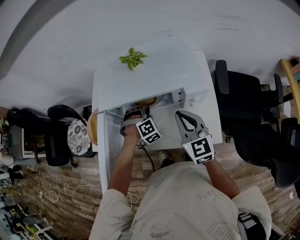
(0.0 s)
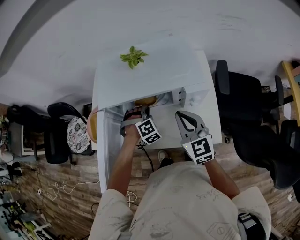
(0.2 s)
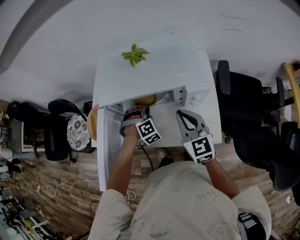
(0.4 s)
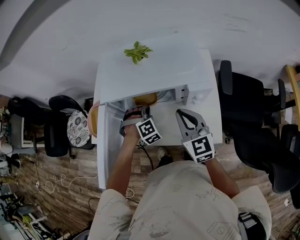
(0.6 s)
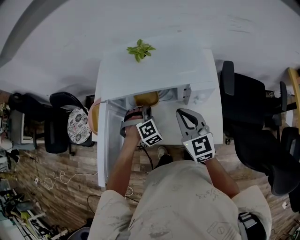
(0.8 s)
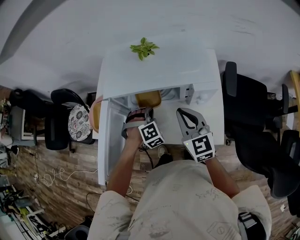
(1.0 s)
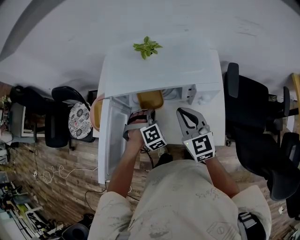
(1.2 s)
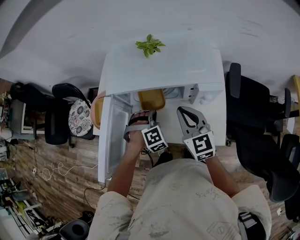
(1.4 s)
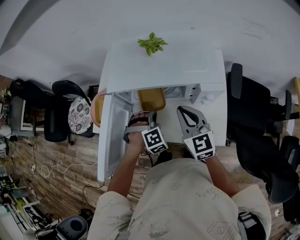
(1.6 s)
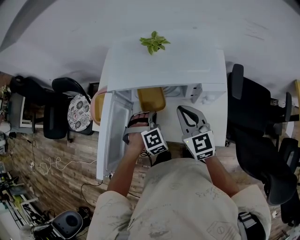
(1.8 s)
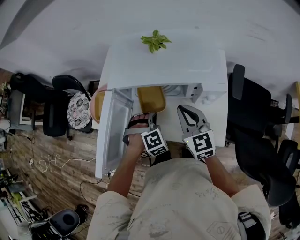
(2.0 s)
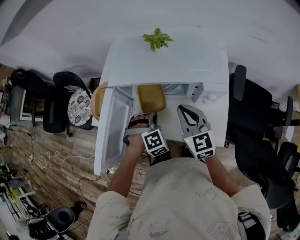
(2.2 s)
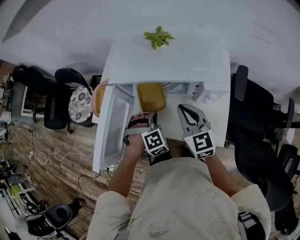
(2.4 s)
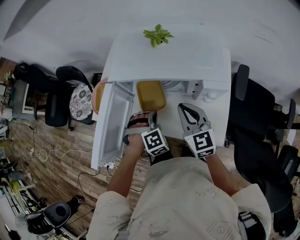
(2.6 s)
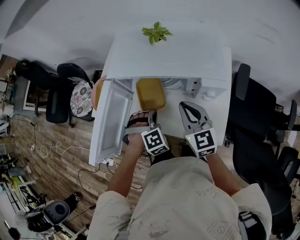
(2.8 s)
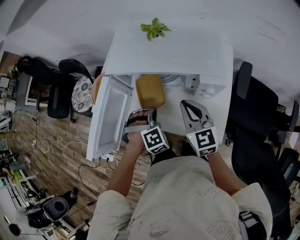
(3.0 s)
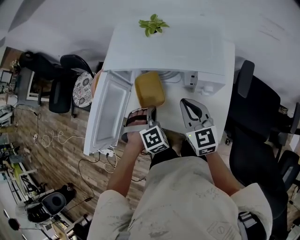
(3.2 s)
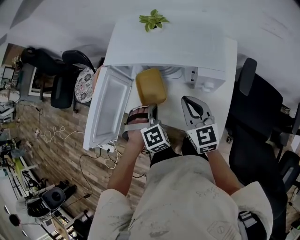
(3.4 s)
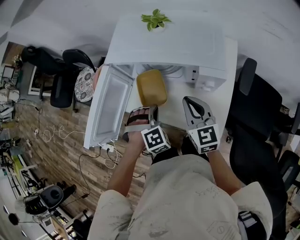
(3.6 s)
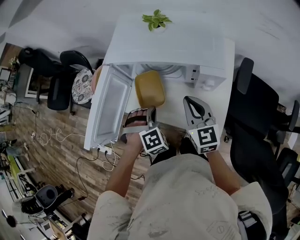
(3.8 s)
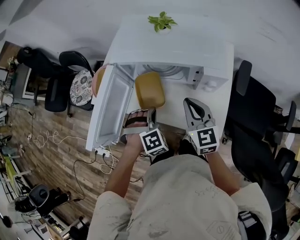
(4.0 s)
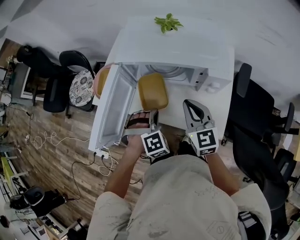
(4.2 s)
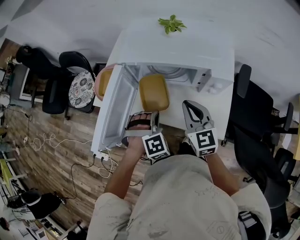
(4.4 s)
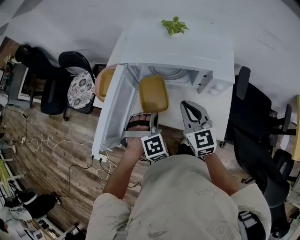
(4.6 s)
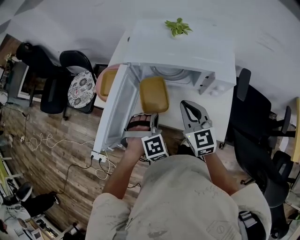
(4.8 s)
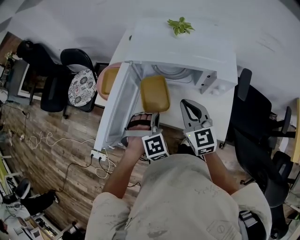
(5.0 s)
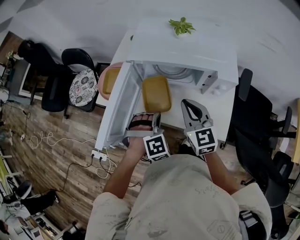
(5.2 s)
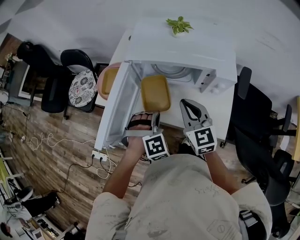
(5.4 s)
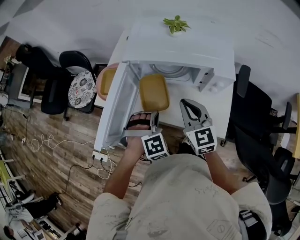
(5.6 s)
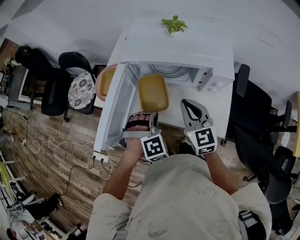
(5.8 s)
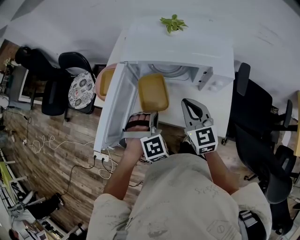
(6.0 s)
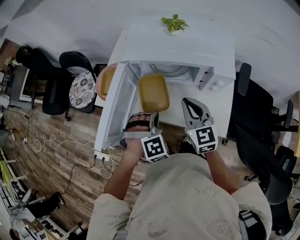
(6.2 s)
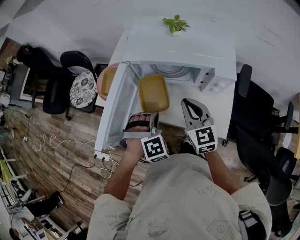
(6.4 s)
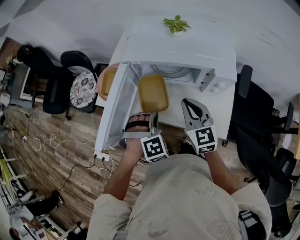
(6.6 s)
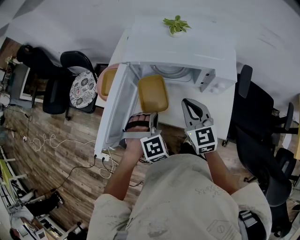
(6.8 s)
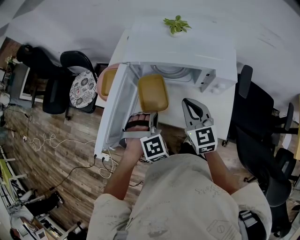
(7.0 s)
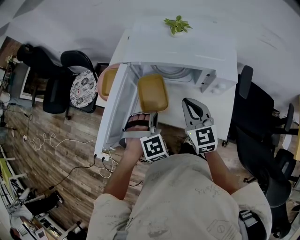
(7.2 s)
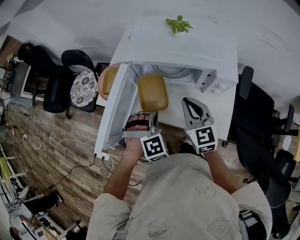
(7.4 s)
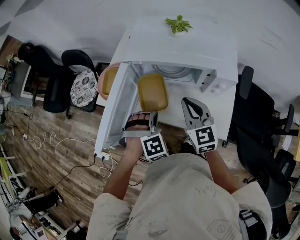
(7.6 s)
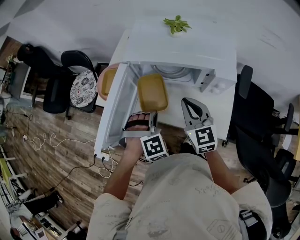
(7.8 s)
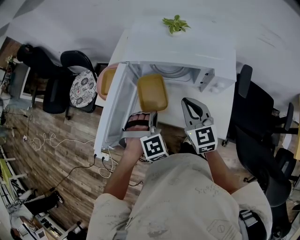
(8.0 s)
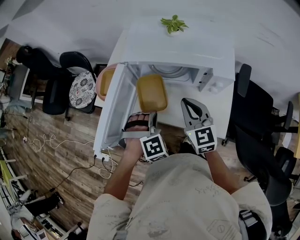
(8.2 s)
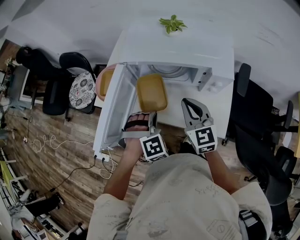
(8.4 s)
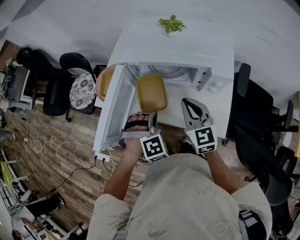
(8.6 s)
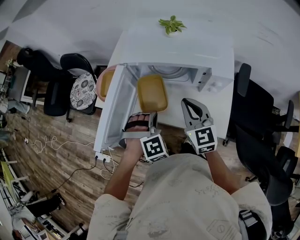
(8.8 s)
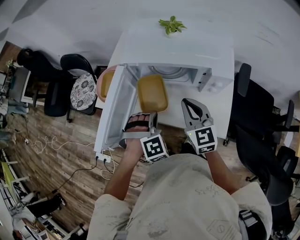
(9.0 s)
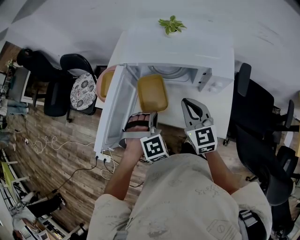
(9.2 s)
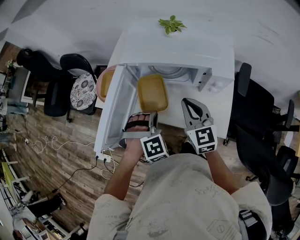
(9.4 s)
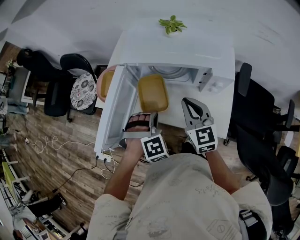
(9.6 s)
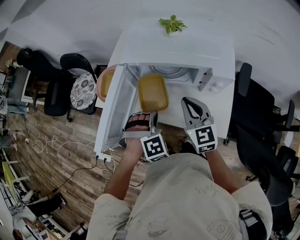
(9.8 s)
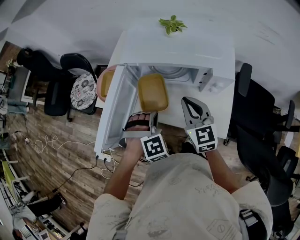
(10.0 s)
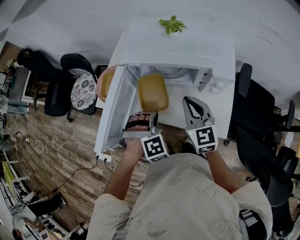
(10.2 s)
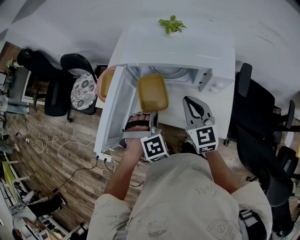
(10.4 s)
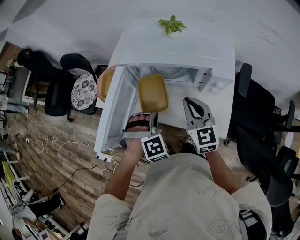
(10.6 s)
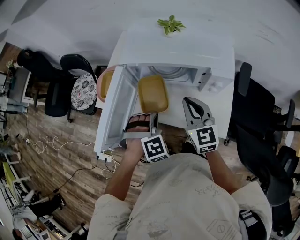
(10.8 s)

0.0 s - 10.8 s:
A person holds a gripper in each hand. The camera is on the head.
0.0 s - 1.6 s: The left gripper goes about 5 cm backward.
1.6 s - 3.0 s: The grippers make only small movements.
3.0 s - 4.6 s: The grippers both shift to the left by about 5 cm.
4.6 s - 6.2 s: The grippers move only a little.
6.2 s - 9.2 s: Both grippers stay put.
9.2 s - 10.8 s: Both grippers stay about where they are.

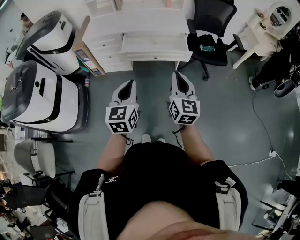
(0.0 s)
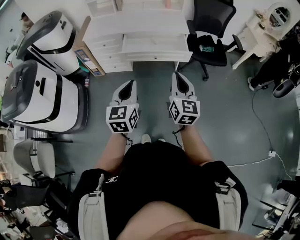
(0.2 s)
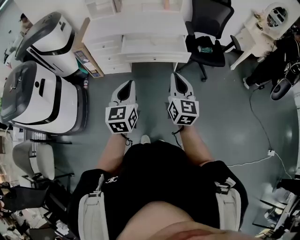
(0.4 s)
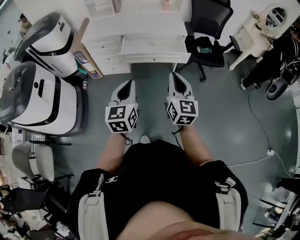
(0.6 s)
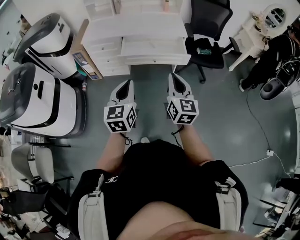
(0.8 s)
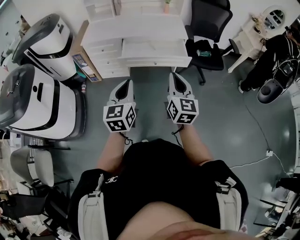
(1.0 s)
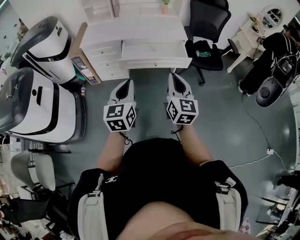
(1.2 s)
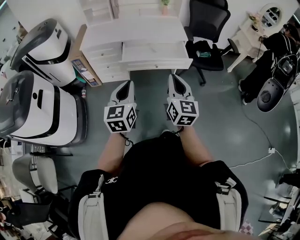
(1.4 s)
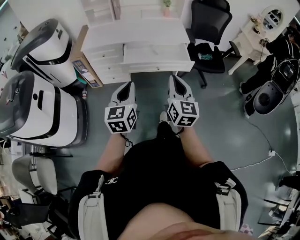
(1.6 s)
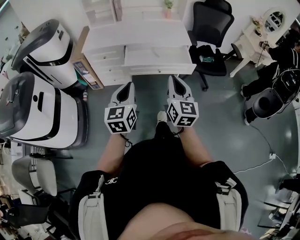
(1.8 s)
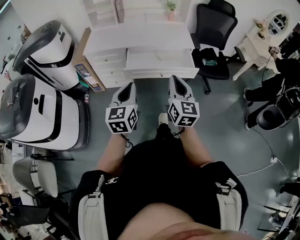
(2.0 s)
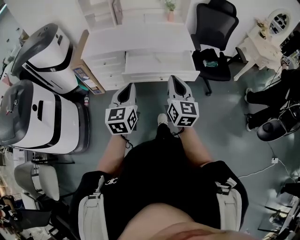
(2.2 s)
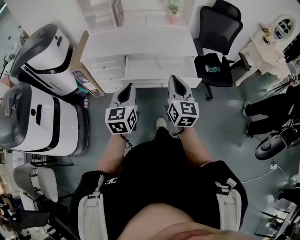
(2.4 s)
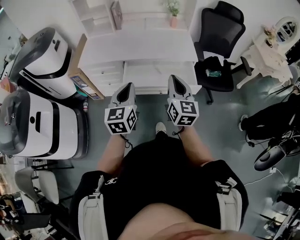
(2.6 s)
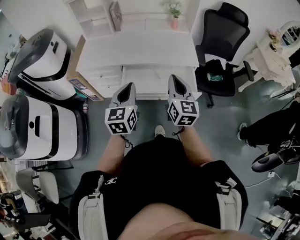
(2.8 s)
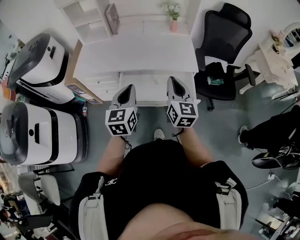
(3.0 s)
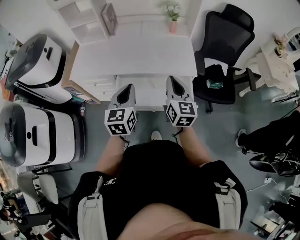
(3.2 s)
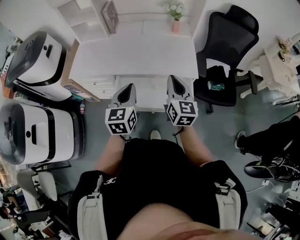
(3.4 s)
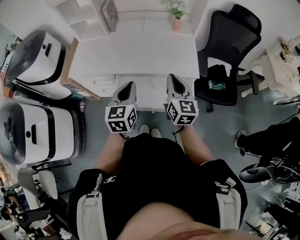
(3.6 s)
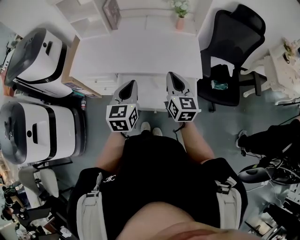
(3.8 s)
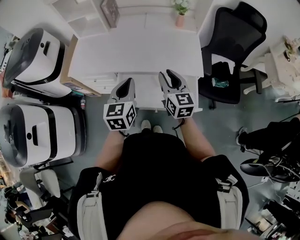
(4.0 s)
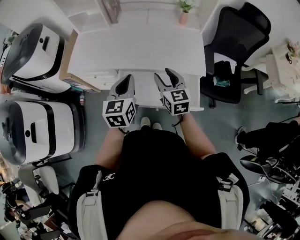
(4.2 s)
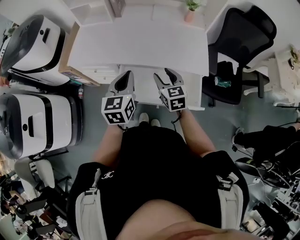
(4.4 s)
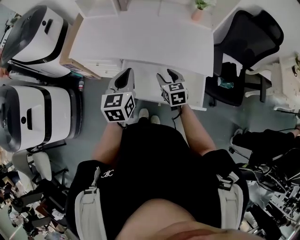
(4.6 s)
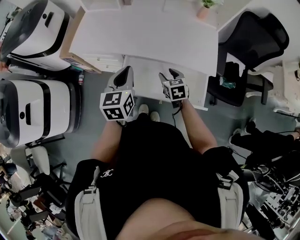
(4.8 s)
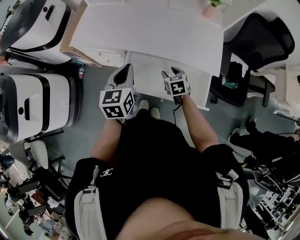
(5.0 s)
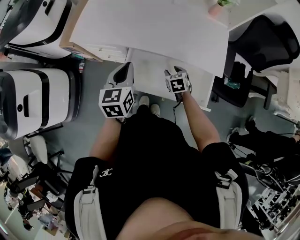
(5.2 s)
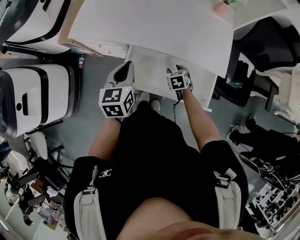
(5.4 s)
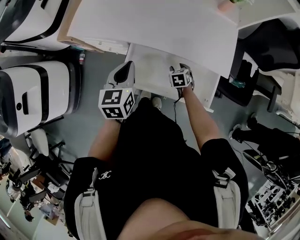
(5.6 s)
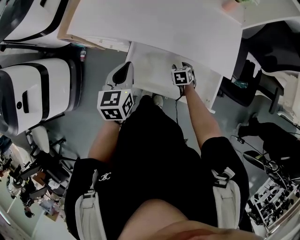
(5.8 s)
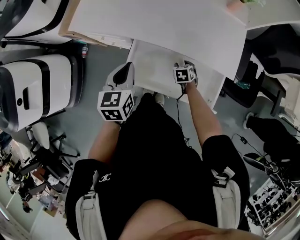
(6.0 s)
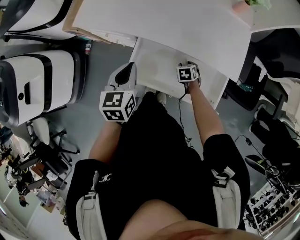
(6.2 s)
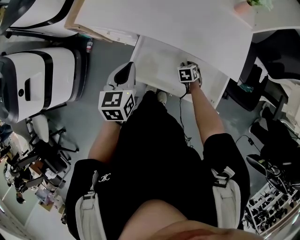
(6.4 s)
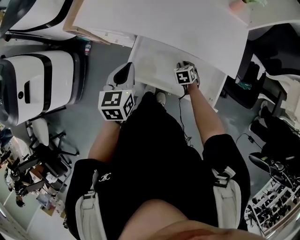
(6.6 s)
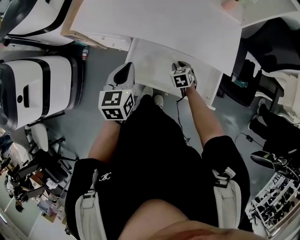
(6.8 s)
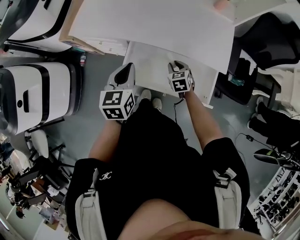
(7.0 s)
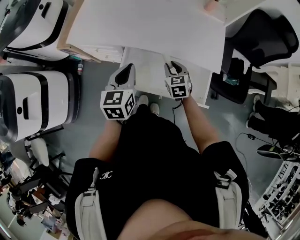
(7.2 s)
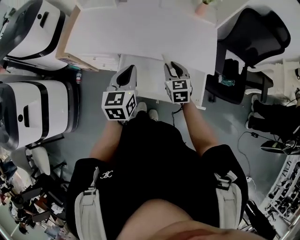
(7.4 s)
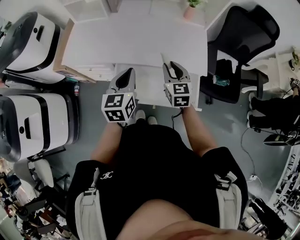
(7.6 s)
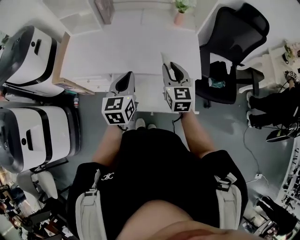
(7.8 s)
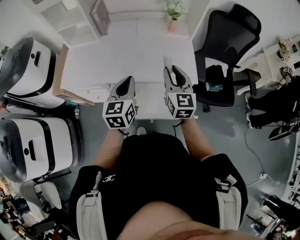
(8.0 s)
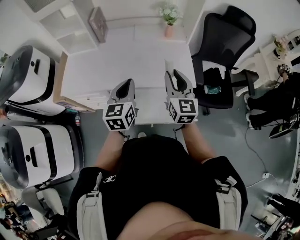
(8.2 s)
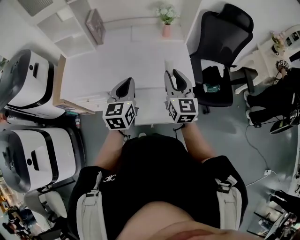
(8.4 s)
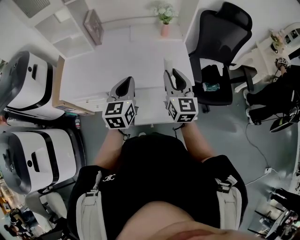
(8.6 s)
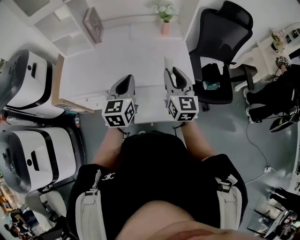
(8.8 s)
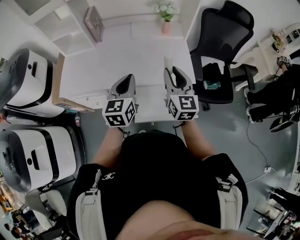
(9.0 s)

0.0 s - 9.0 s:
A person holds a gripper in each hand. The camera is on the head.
0.0 s - 1.6 s: The right gripper travels to the left by approximately 10 cm. The left gripper travels to the left and forward by about 10 cm.
1.6 s - 3.0 s: Both grippers travel together forward, approximately 35 cm.
3.0 s - 4.4 s: The left gripper is displaced forward by about 15 cm. Meanwhile the right gripper moves forward and downward, roughly 20 cm, swivels some 30 degrees, and opens.
4.4 s - 6.0 s: The left gripper shifts roughly 15 cm downward, to the left and forward, while the right gripper travels downward by some 30 cm, and points its fingers roughly 40 degrees further downward.
6.0 s - 7.6 s: The right gripper is displaced upward by about 30 cm, points its fingers some 40 degrees further upward, and closes its fingers. The left gripper is displaced to the right and upward by some 15 cm.
7.6 s - 9.0 s: The left gripper travels upward and to the right by some 5 cm. Meanwhile the right gripper travels upward and to the right by approximately 15 cm, and swivels about 20 degrees.

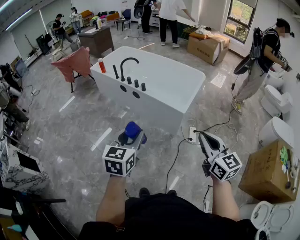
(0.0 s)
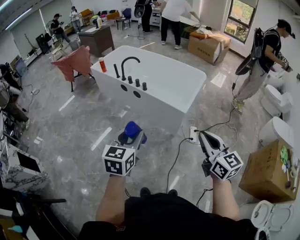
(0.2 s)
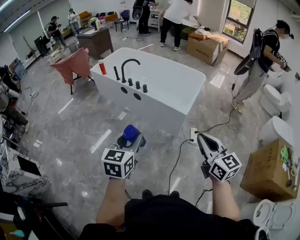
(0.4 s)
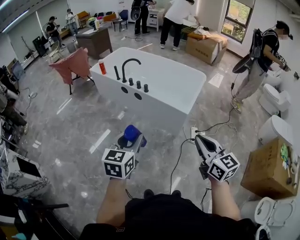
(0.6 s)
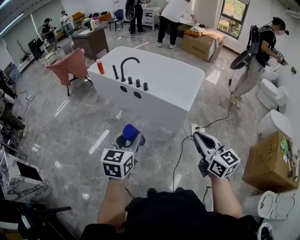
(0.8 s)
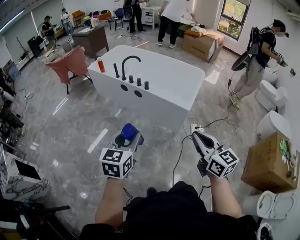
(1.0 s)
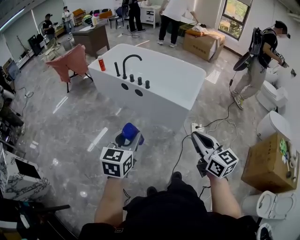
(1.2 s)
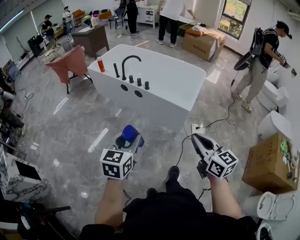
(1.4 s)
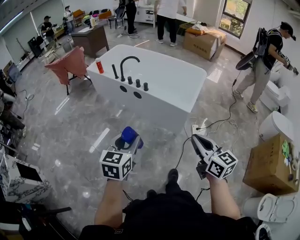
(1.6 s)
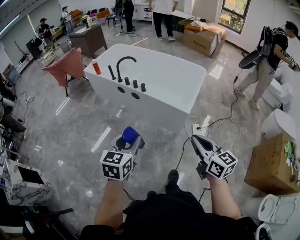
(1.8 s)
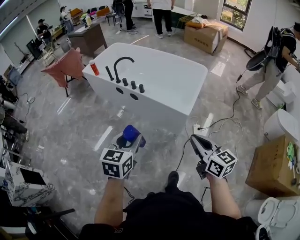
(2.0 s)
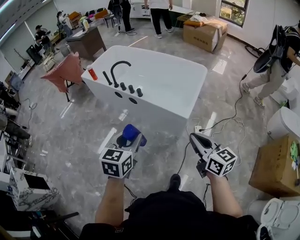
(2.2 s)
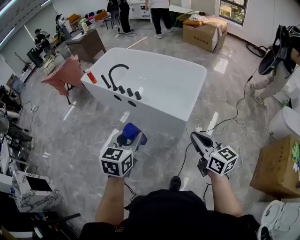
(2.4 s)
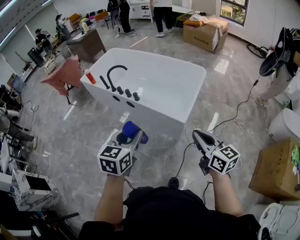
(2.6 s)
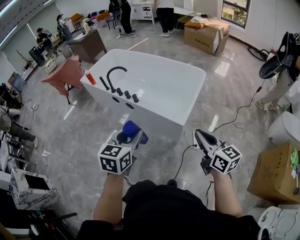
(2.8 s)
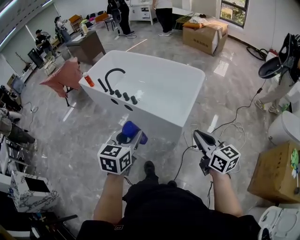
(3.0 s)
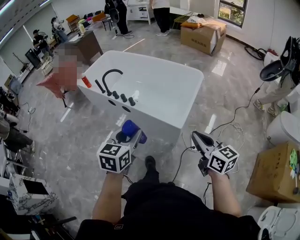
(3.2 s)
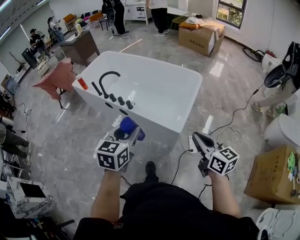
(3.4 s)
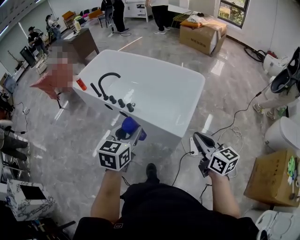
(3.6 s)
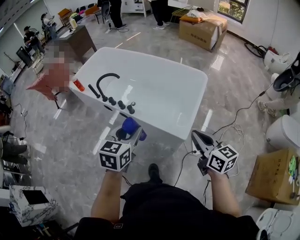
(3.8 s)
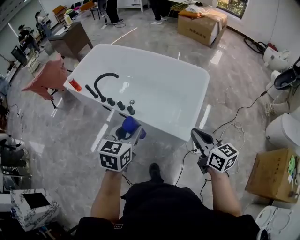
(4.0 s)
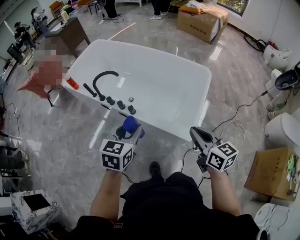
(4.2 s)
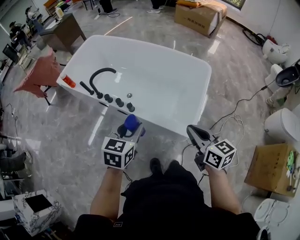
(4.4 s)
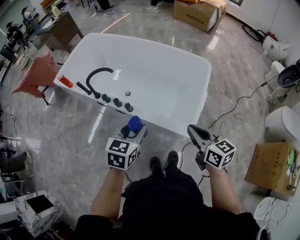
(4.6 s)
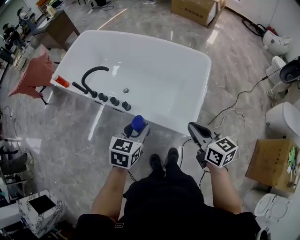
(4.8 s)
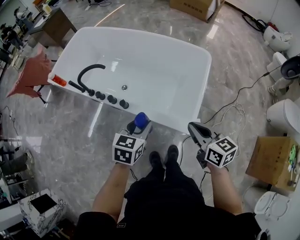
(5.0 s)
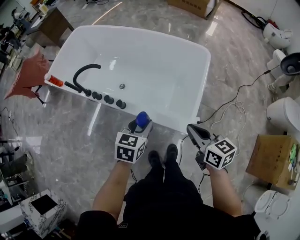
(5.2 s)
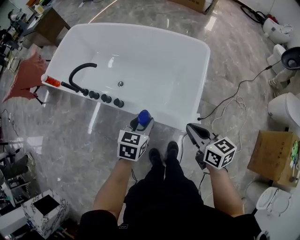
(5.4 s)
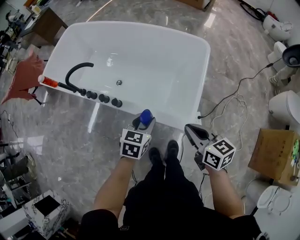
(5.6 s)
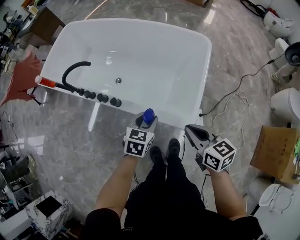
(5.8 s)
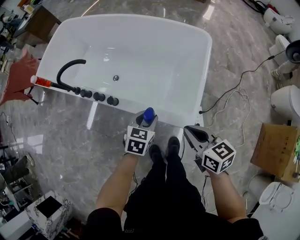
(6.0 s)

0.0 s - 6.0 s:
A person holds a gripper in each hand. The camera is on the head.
0.0 s - 1.6 s: Both grippers travel together to the left, some 10 cm.
1.6 s - 3.0 s: Both grippers travel together forward and to the right, roughly 25 cm.
3.0 s - 4.4 s: Both grippers travel together forward, some 25 cm.
4.4 s - 6.0 s: The left gripper shifts some 25 cm downward and to the right; the right gripper travels downward by approximately 15 cm.
